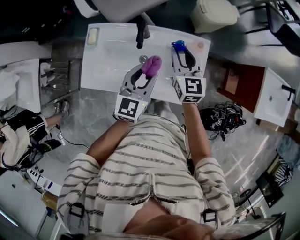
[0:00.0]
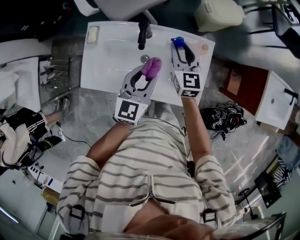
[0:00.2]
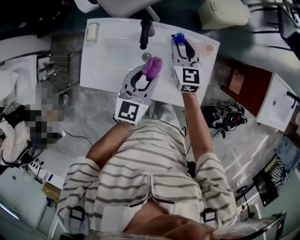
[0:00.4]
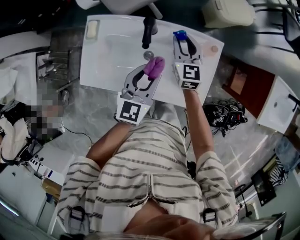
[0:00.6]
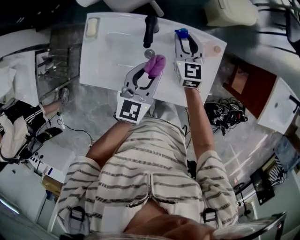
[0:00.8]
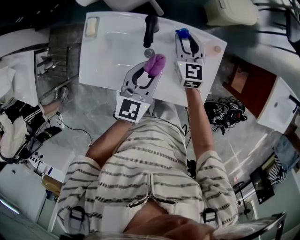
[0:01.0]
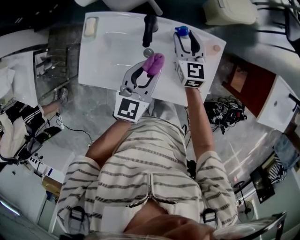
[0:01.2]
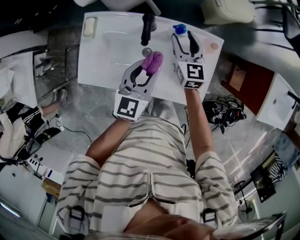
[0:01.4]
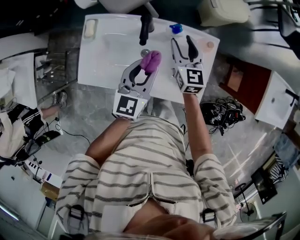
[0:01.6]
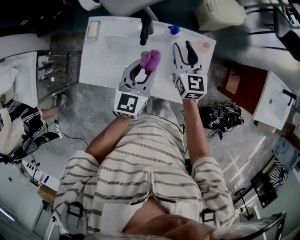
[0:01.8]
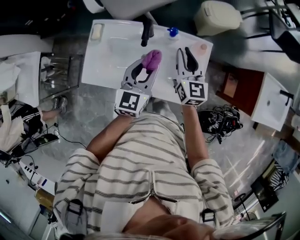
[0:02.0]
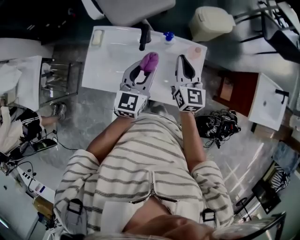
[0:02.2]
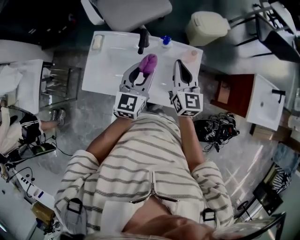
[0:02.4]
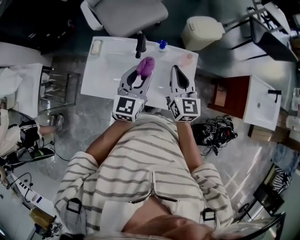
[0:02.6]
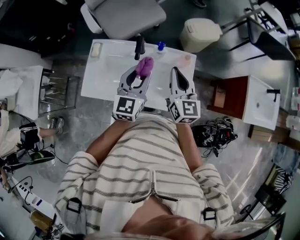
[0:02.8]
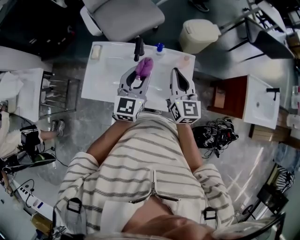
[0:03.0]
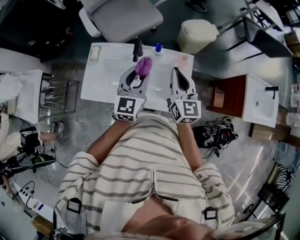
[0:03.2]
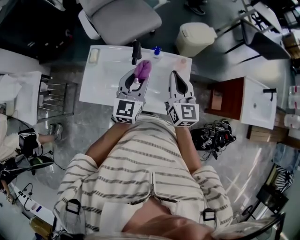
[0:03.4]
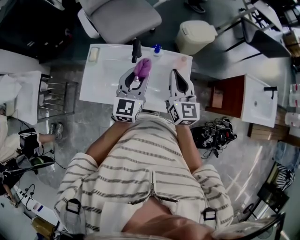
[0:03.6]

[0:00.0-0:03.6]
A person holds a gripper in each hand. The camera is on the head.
0:00.0 to 0:01.8: The right gripper reaches roughly 10 cm downward, then returns.
0:01.8 to 0:03.6: The right gripper travels upward and backward by roughly 15 cm, and closes its fingers. Meanwhile the left gripper shifts approximately 10 cm upward.

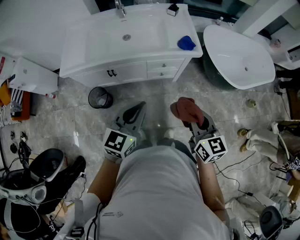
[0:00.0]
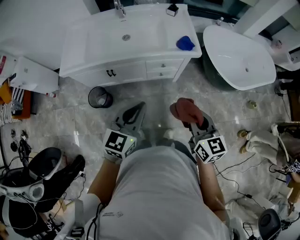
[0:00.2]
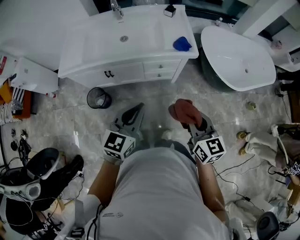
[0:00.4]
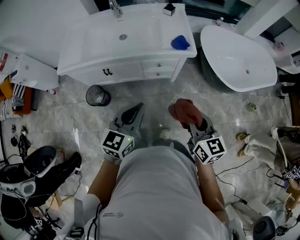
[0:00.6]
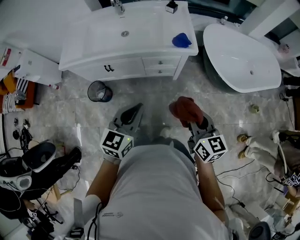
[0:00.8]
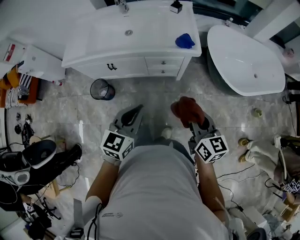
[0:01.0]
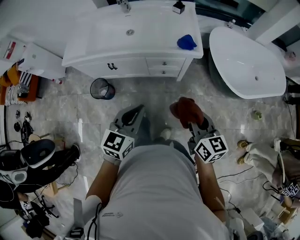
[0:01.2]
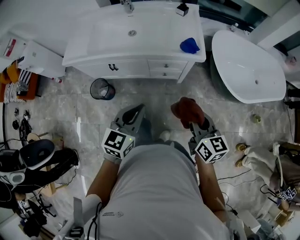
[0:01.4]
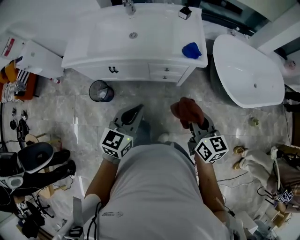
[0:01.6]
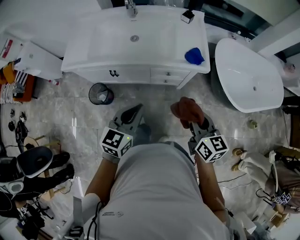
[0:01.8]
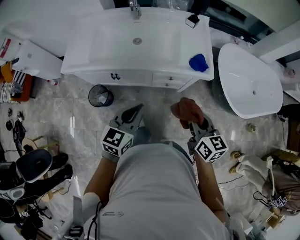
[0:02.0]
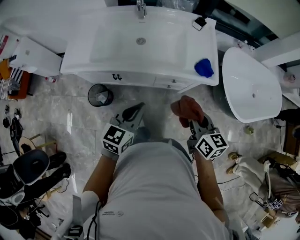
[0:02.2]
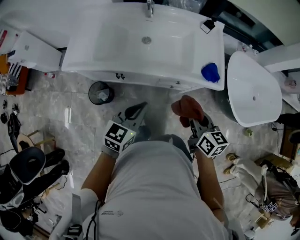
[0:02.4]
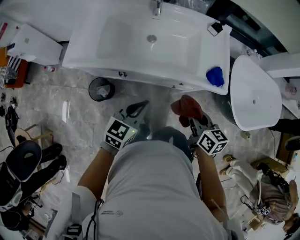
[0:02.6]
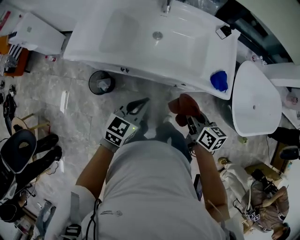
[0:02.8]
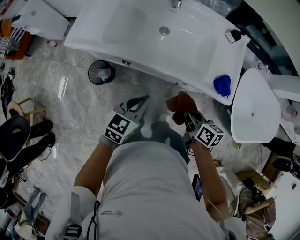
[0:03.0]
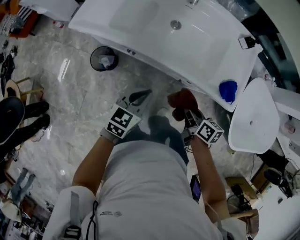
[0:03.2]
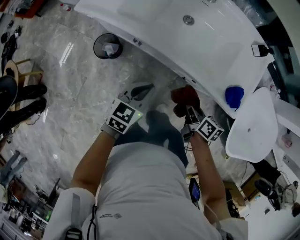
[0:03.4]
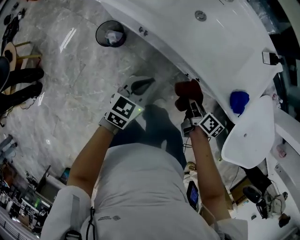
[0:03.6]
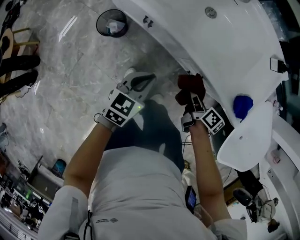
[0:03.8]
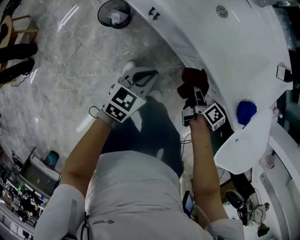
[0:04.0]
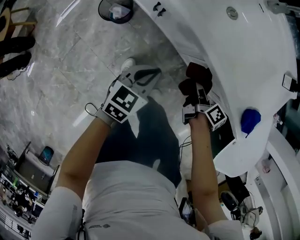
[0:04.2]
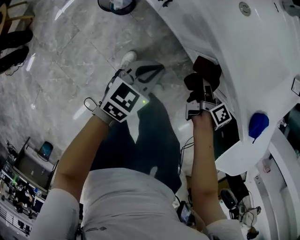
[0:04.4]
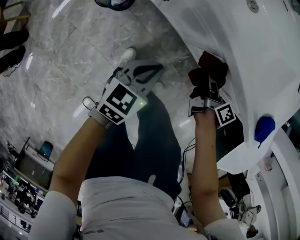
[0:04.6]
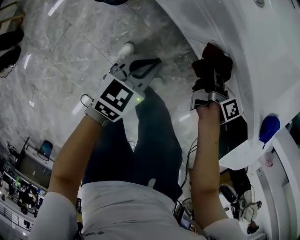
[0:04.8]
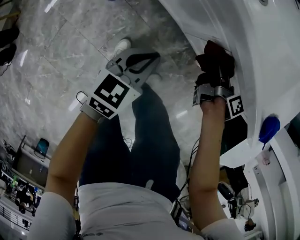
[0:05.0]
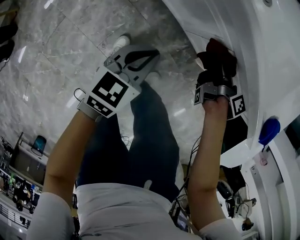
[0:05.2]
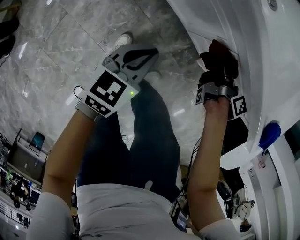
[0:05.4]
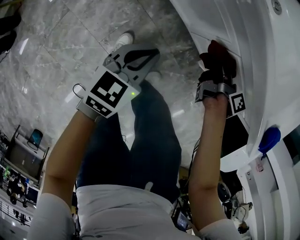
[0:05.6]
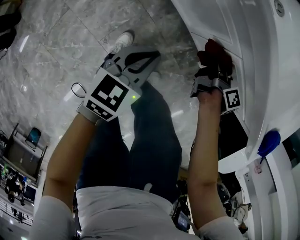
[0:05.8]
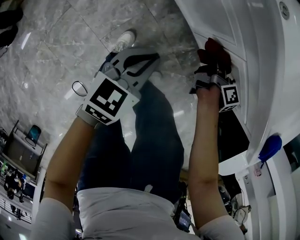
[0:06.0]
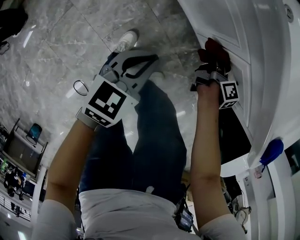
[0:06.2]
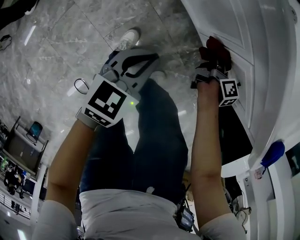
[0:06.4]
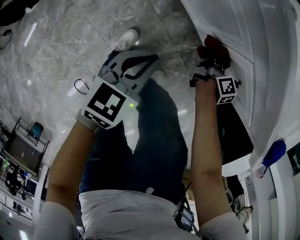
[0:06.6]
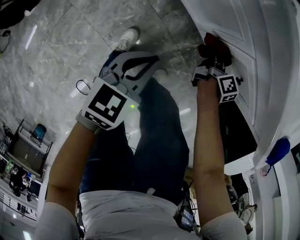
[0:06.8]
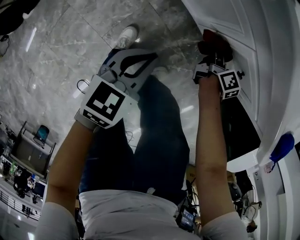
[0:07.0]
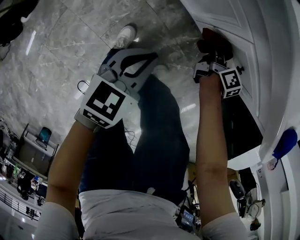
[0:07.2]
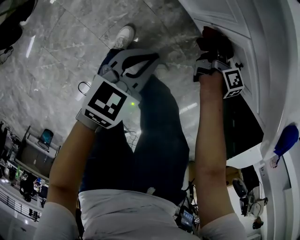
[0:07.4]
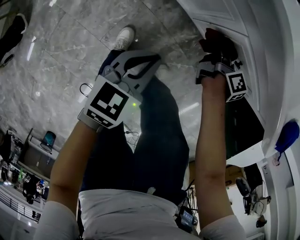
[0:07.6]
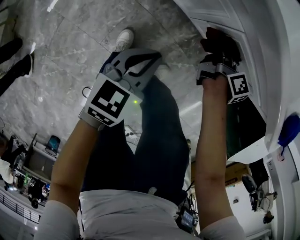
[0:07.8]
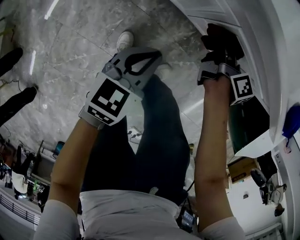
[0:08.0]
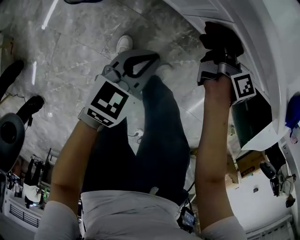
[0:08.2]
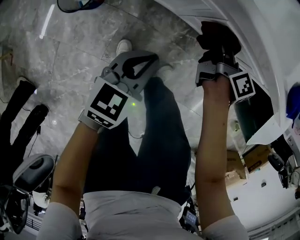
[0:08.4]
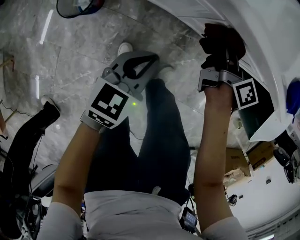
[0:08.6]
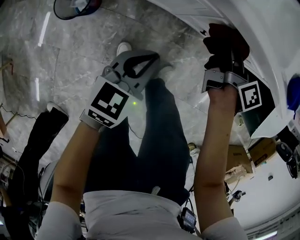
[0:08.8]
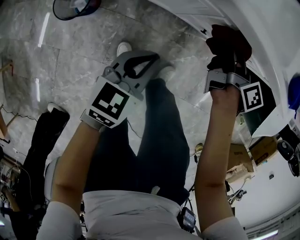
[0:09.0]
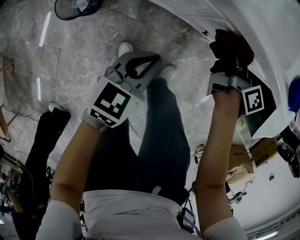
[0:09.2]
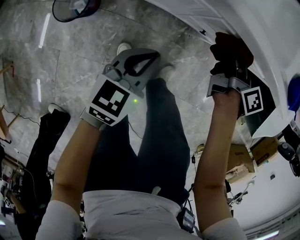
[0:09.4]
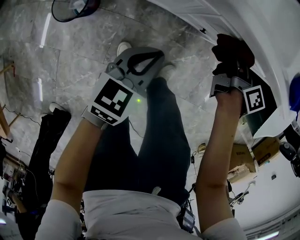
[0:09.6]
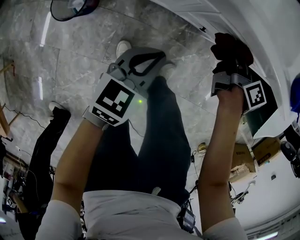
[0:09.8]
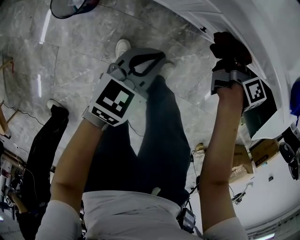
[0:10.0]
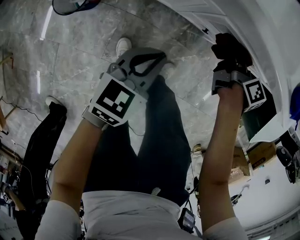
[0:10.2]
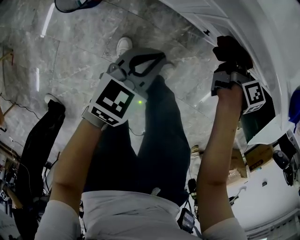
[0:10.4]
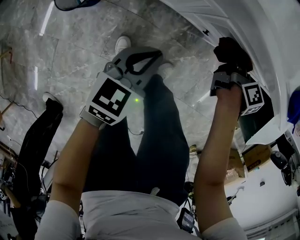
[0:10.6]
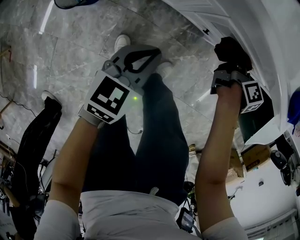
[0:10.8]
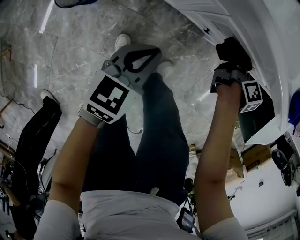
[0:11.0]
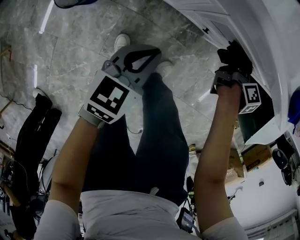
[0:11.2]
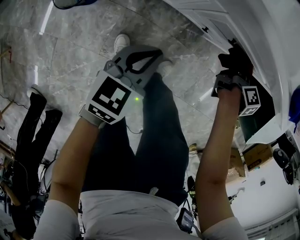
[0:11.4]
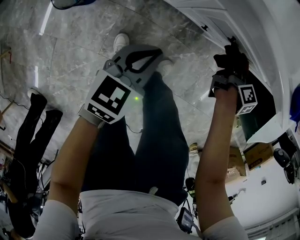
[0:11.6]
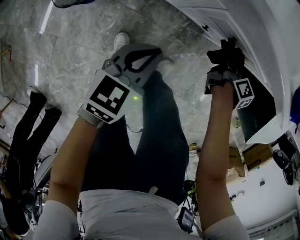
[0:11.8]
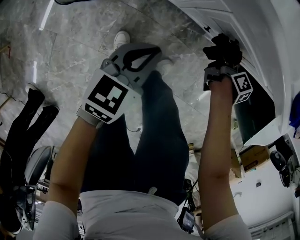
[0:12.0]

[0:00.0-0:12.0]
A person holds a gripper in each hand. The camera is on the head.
0:00.0 to 0:01.6: The right gripper heads forward and to the right, covering some 10 cm, while the left gripper changes place by roughly 5 cm.
0:01.6 to 0:03.0: Both grippers travel together forward, to the left and downward, roughly 25 cm. The right gripper turns by approximately 30 degrees.
0:03.0 to 0:04.4: Both grippers move downward, some 25 cm. The left gripper turns by approximately 20 degrees. The right gripper rotates roughly 20 degrees.
0:04.4 to 0:06.0: The right gripper is displaced downward by some 10 cm. Meanwhile the left gripper moves backward and downward, some 10 cm.
0:06.0 to 0:07.6: The grippers stay close to where they were, moving slightly.
0:07.6 to 0:09.0: The right gripper moves upward, about 15 cm.
0:09.0 to 0:10.4: The right gripper shifts about 10 cm to the right and downward.
0:10.4 to 0:12.0: The right gripper is displaced downward by roughly 10 cm.

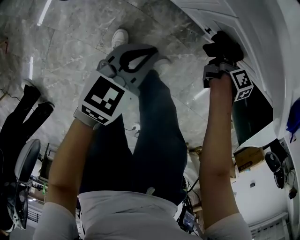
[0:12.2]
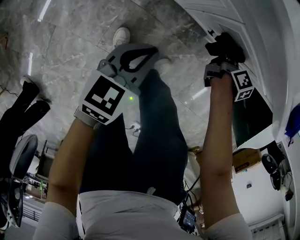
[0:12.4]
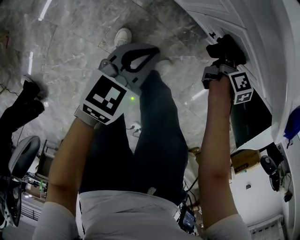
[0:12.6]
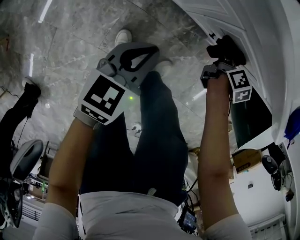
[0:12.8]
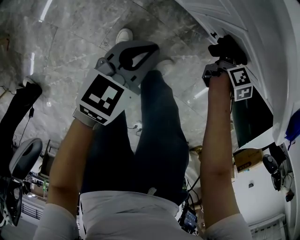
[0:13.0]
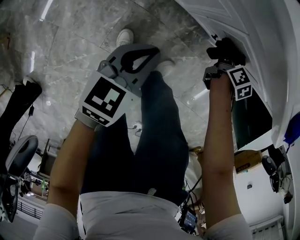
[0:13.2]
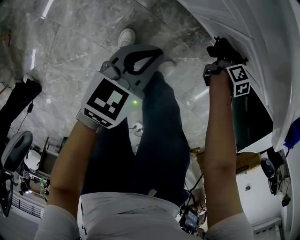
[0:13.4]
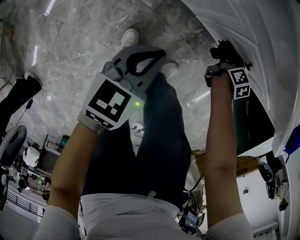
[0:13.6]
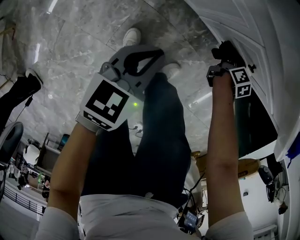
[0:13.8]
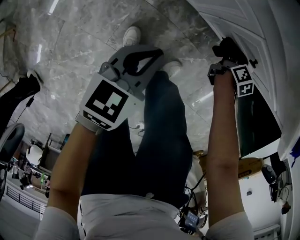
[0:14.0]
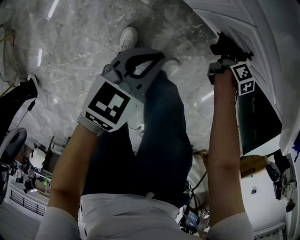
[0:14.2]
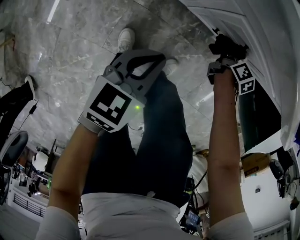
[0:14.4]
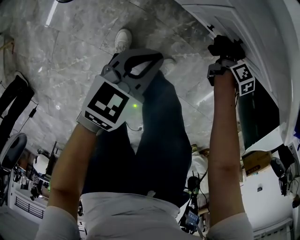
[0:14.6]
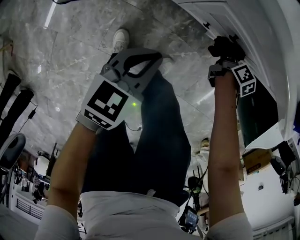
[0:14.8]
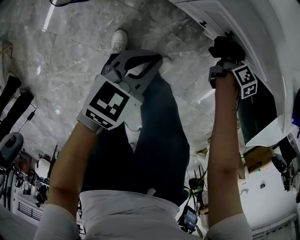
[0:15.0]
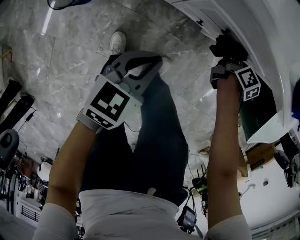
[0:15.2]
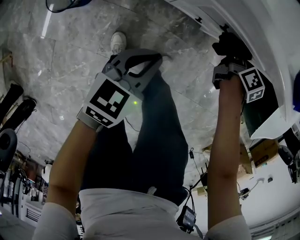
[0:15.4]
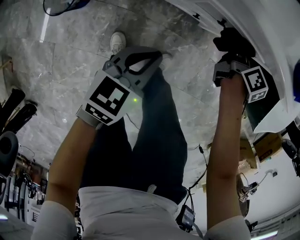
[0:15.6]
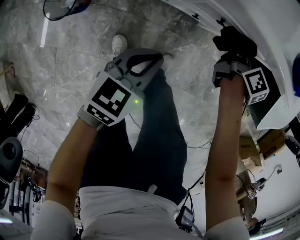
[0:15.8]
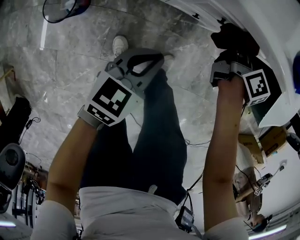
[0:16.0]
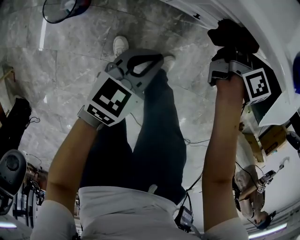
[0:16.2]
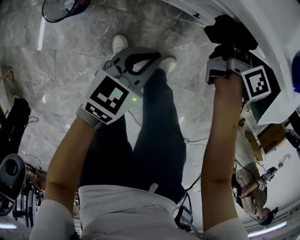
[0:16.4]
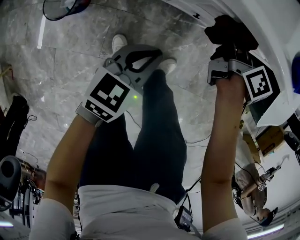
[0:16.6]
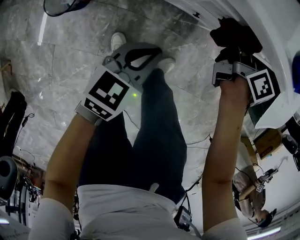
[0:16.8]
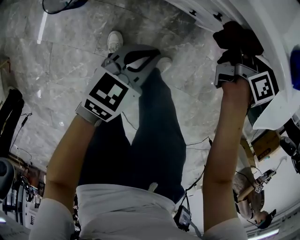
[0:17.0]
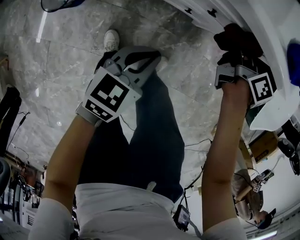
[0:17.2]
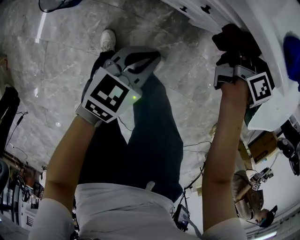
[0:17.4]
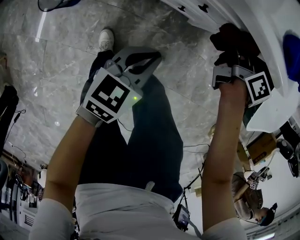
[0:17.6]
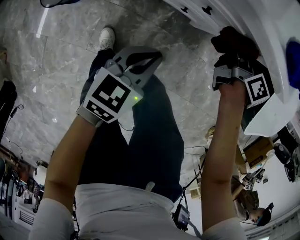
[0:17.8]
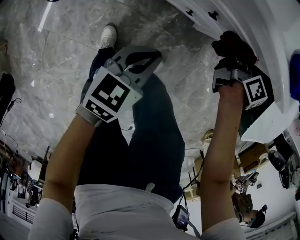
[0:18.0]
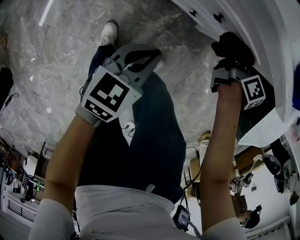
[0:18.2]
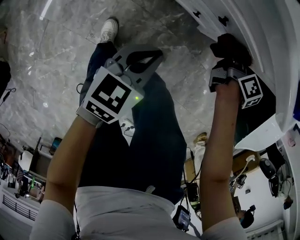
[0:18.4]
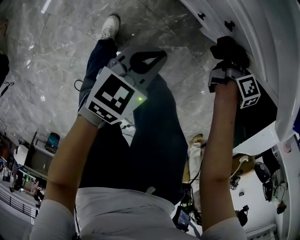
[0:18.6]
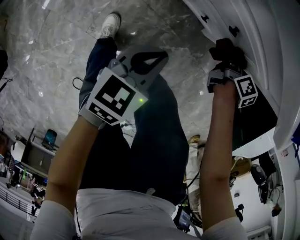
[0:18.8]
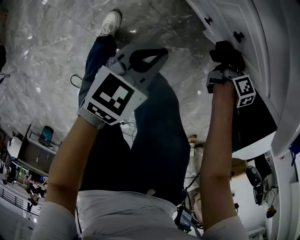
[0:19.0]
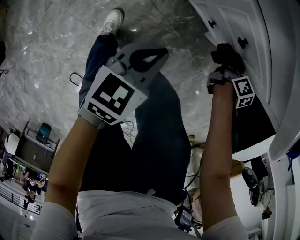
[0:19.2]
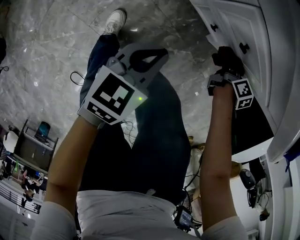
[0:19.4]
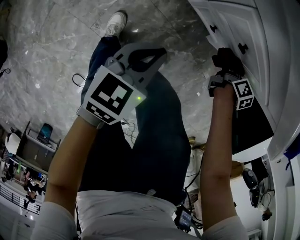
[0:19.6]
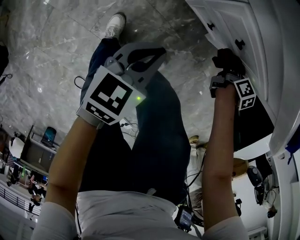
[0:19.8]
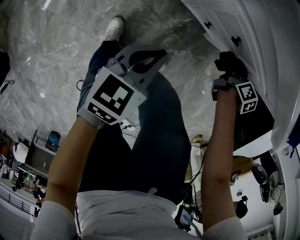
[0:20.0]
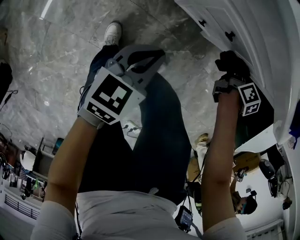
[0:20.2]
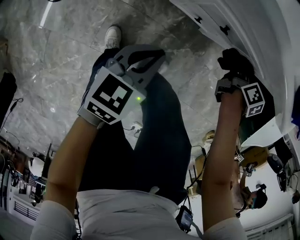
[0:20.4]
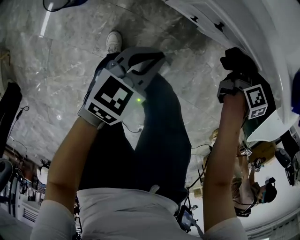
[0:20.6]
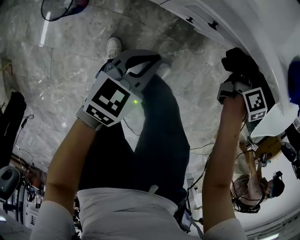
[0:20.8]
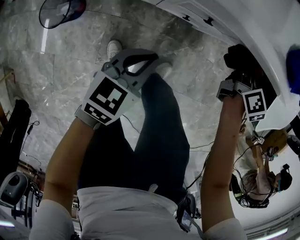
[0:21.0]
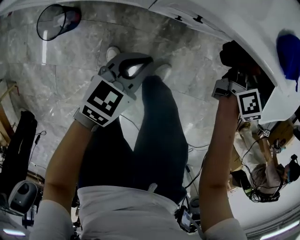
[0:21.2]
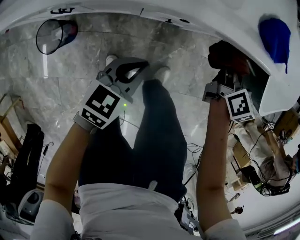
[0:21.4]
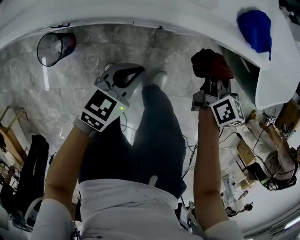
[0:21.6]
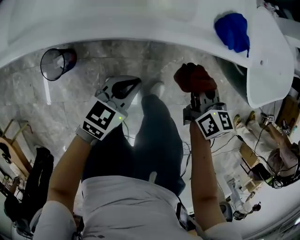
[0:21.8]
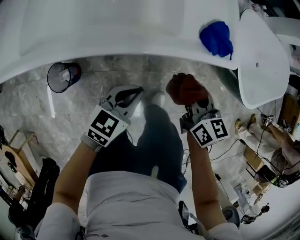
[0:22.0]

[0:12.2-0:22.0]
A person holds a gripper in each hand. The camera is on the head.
0:12.2 to 0:13.6: The right gripper goes some 5 cm downward.
0:13.6 to 0:15.0: The left gripper is displaced to the right by about 10 cm, while the right gripper is displaced to the right and upward by about 10 cm.
0:15.0 to 0:16.4: The right gripper travels upward and to the left by approximately 20 cm, and changes its angle by approximately 20 degrees.
0:16.4 to 0:17.8: Both grippers move to the right, some 10 cm.
0:17.8 to 0:19.2: The right gripper travels downward by roughly 15 cm, and turns by some 20 degrees. The left gripper moves roughly 5 cm.
0:19.2 to 0:20.6: The left gripper moves about 5 cm, and changes its angle by approximately 20 degrees; the right gripper shifts roughly 15 cm upward.
0:20.6 to 0:22.0: The left gripper is displaced upward by roughly 15 cm, and swivels roughly 20 degrees; the right gripper travels upward and backward by about 25 cm, and turns by approximately 30 degrees.
